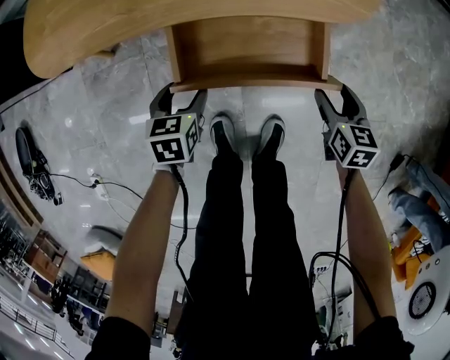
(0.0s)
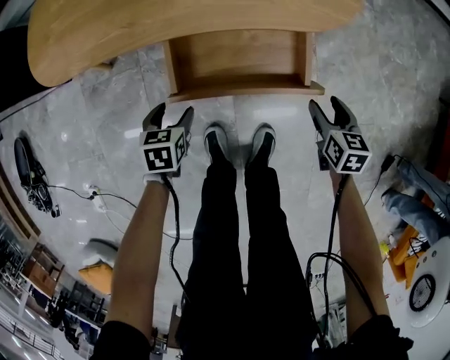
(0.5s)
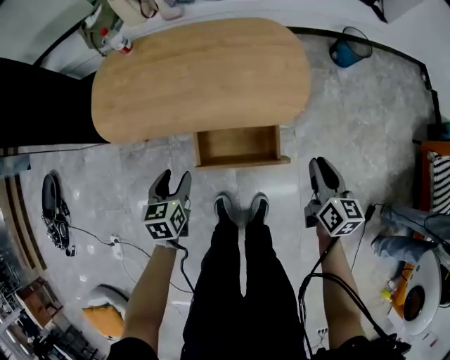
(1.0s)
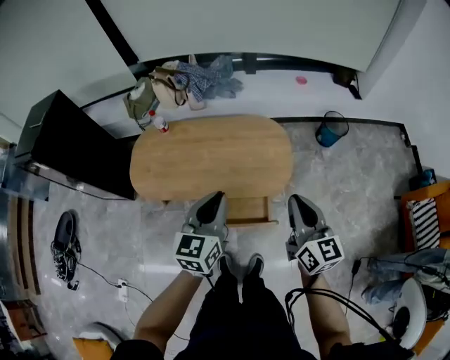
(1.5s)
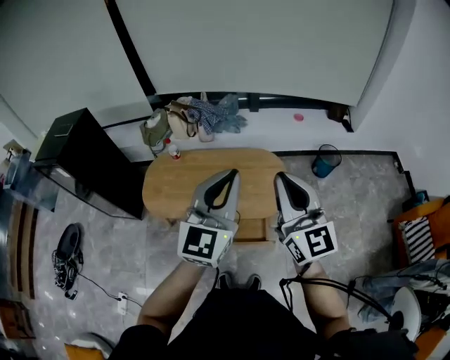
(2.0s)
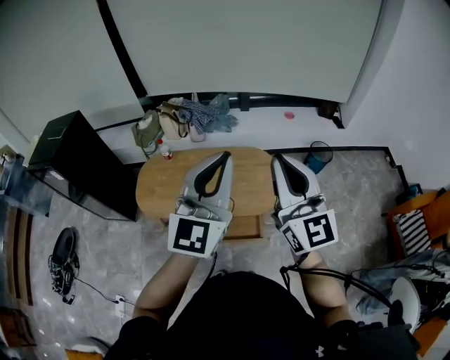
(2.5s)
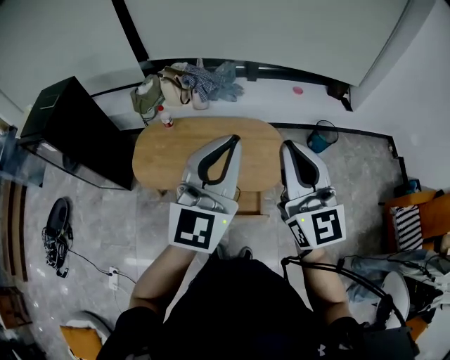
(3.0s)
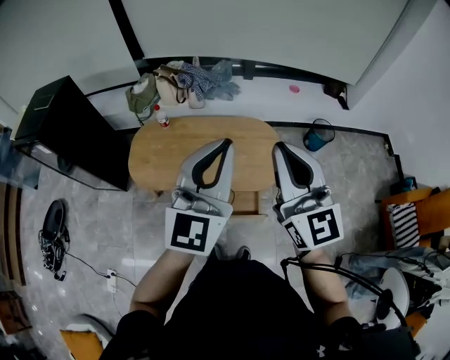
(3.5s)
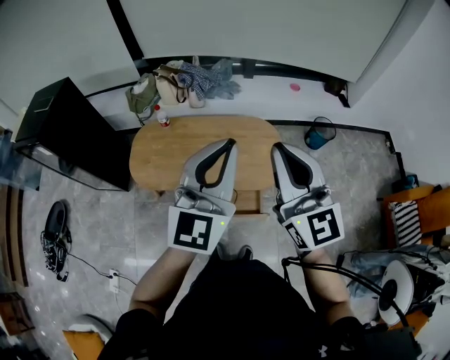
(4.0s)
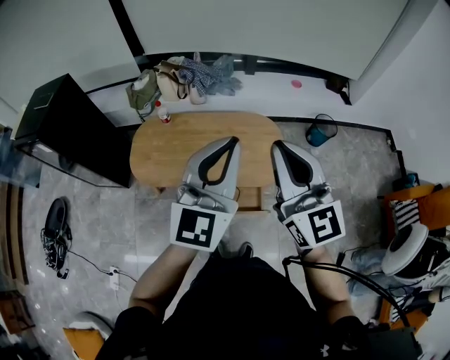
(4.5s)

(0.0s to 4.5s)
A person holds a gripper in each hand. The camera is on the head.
0.0s - 2.0s: The two grippers go some 90 cm upward. The left gripper angles its fingers upward, by approximately 60 degrees, and closes. The right gripper points its fingers about 60 degrees further upward, and closes.
2.0s - 4.5s: The right gripper travels to the left by about 5 cm.

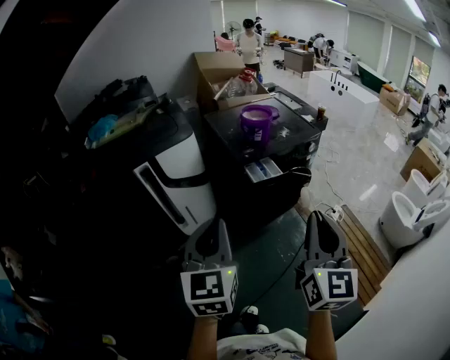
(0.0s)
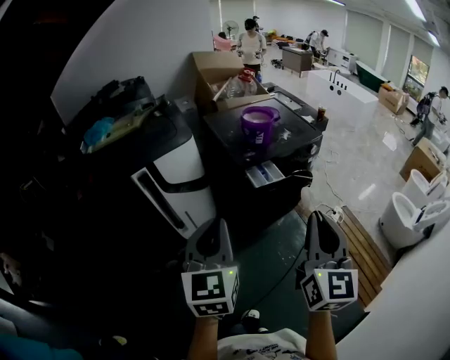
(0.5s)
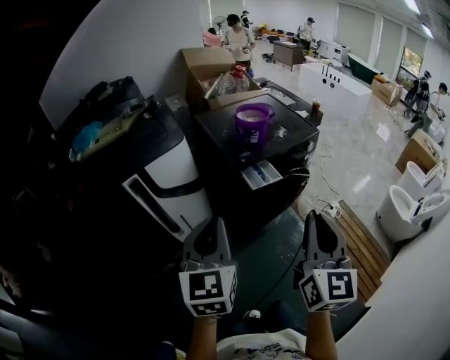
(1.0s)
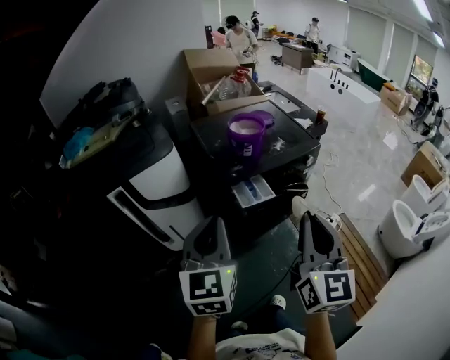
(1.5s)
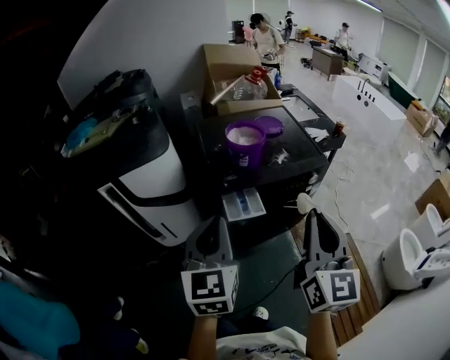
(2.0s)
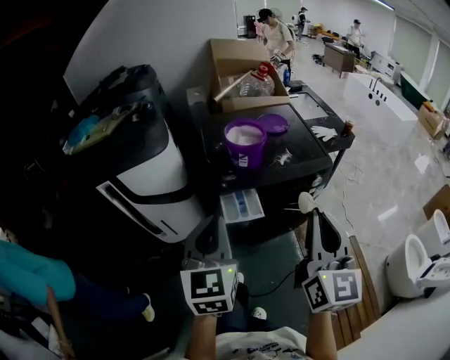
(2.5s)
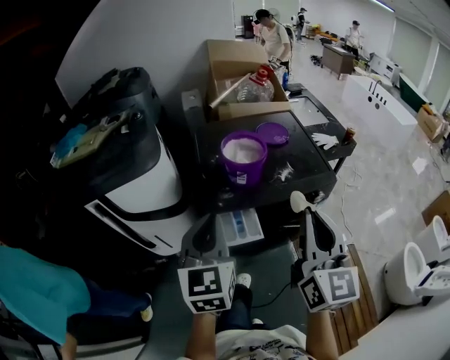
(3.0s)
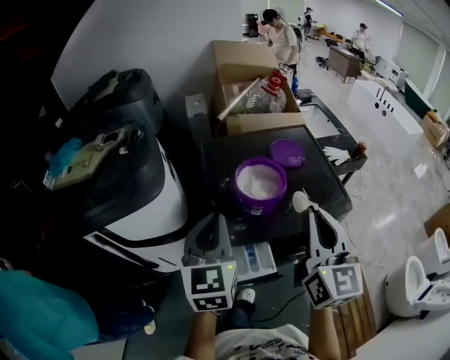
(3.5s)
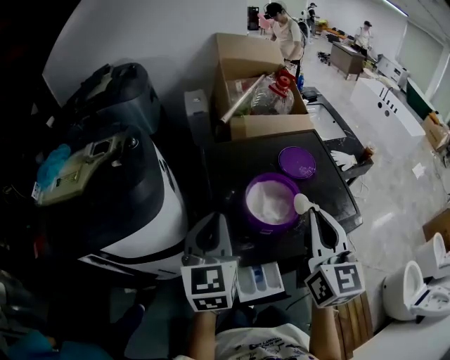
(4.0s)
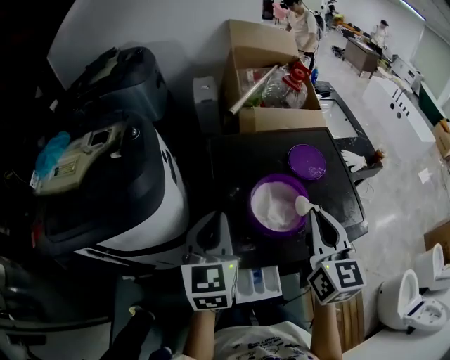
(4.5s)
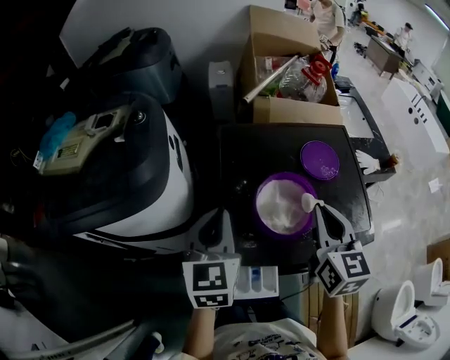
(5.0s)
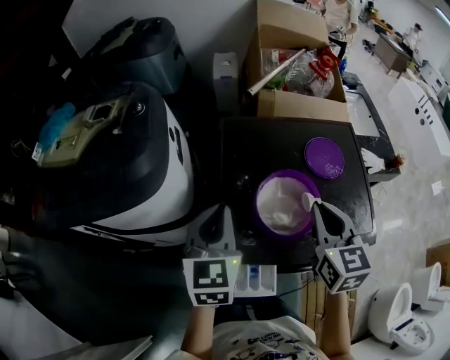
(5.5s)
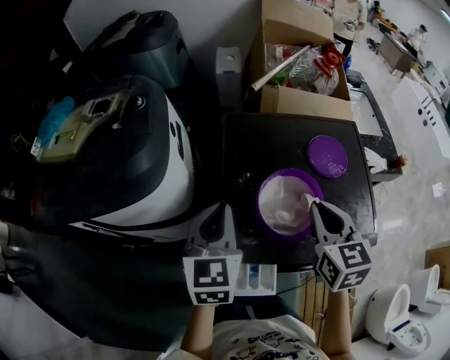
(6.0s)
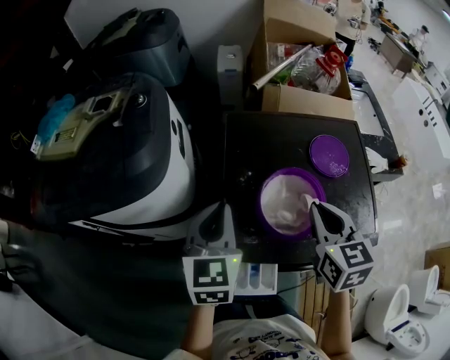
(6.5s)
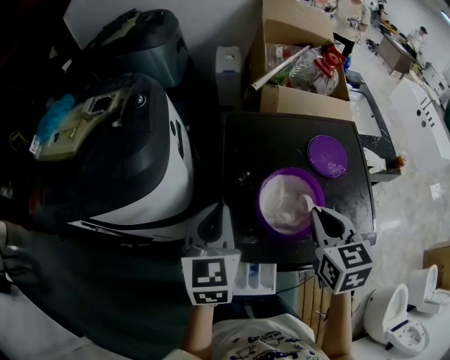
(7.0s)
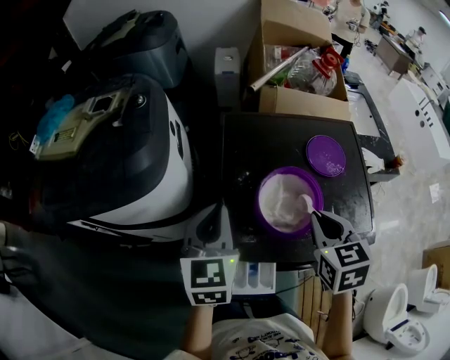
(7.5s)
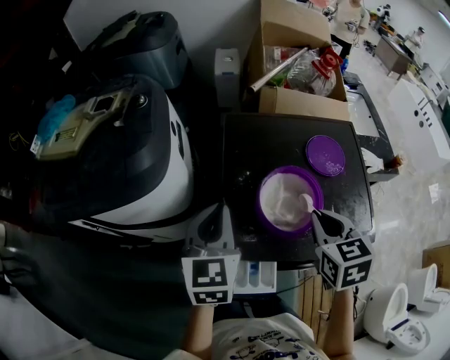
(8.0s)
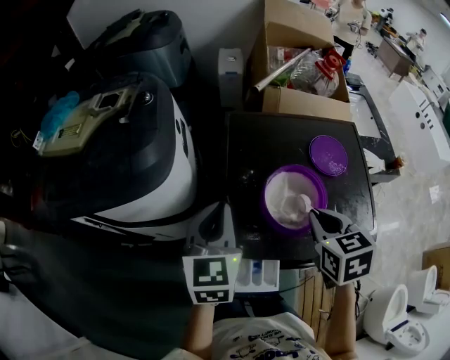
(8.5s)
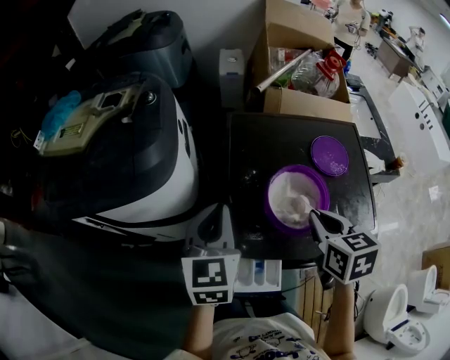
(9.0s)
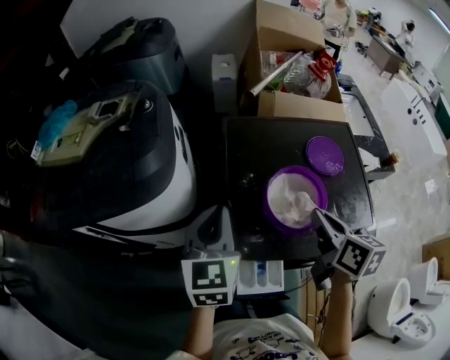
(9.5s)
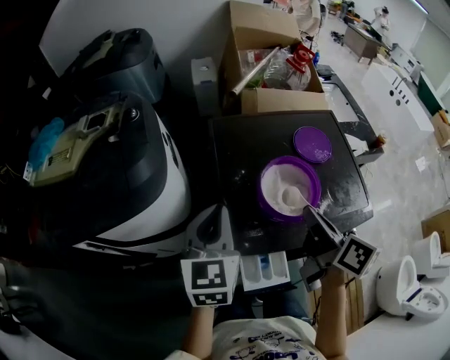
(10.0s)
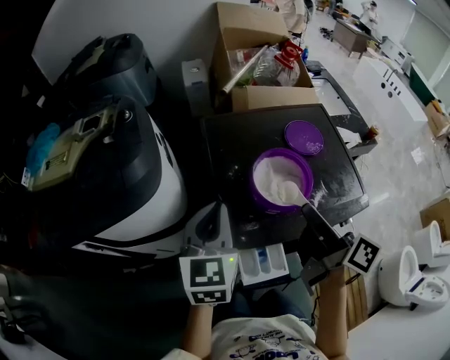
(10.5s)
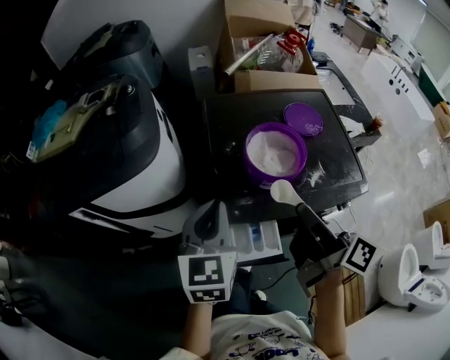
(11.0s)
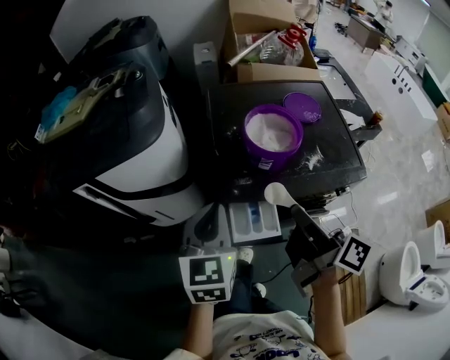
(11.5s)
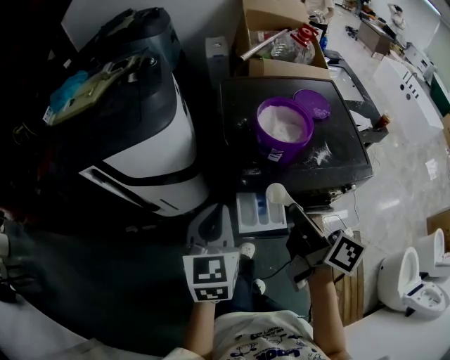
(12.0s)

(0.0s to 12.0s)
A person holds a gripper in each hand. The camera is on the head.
0.0s - 2.0s: Both grippers move forward and to the right, about 25 cm.
2.0s - 4.0s: Both grippers move forward, about 35 cm.
4.0s - 6.0s: The right gripper moves downward and forward, roughly 15 cm, and turns by about 30 degrees, while the left gripper shifts some 5 cm downward.
6.0s - 8.0s: The grippers make only small movements.
8.0s - 10.0s: The right gripper moves roughly 5 cm, and twists roughly 50 degrees clockwise, seen from behind.
10.0s - 12.0s: The two grippers go approximately 15 cm backward.

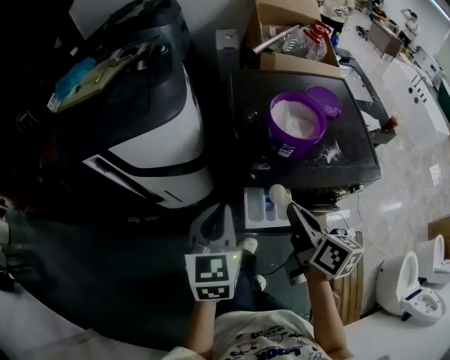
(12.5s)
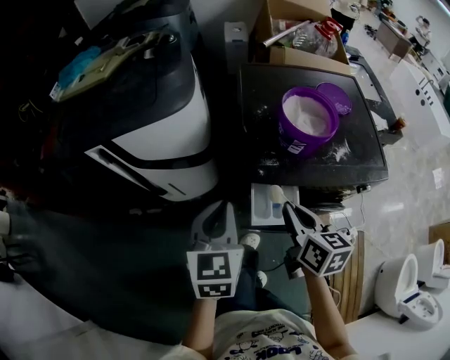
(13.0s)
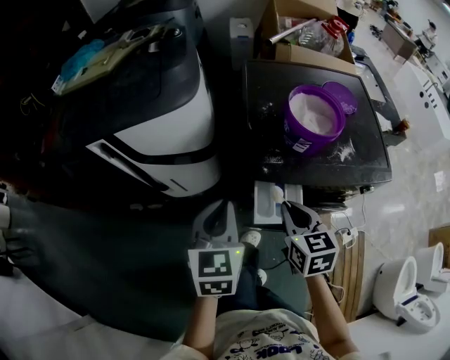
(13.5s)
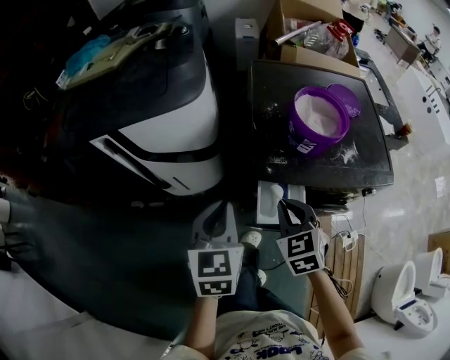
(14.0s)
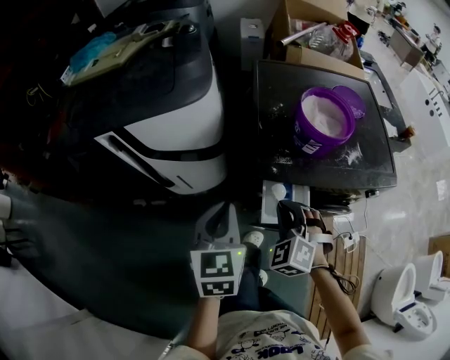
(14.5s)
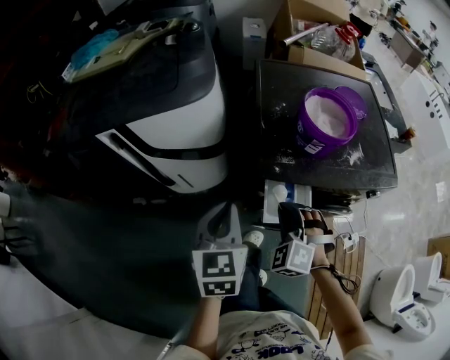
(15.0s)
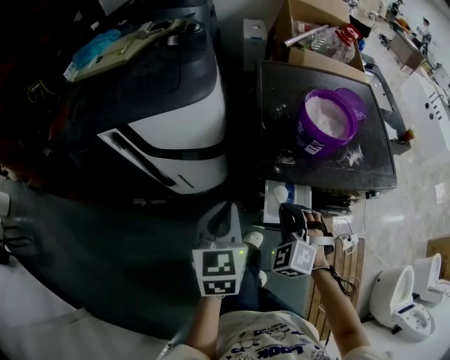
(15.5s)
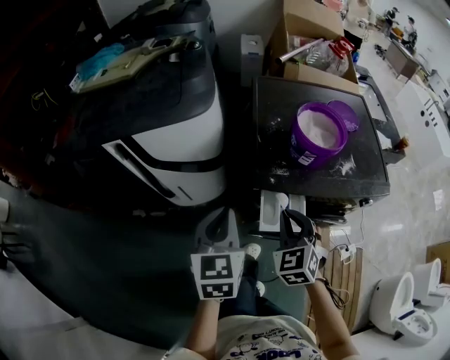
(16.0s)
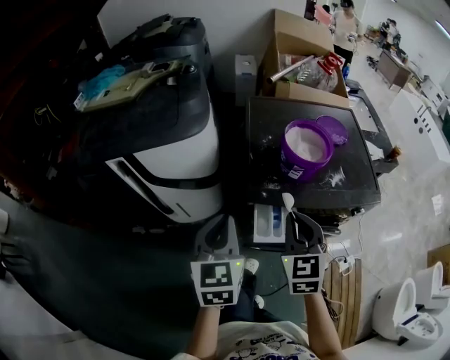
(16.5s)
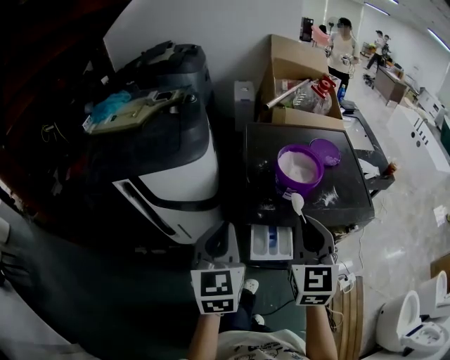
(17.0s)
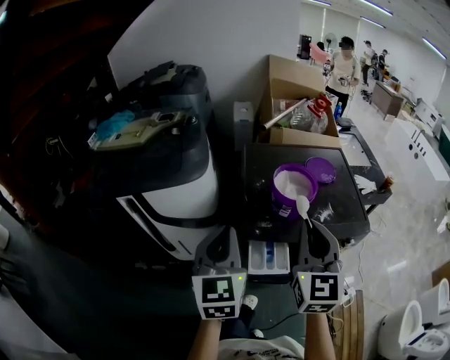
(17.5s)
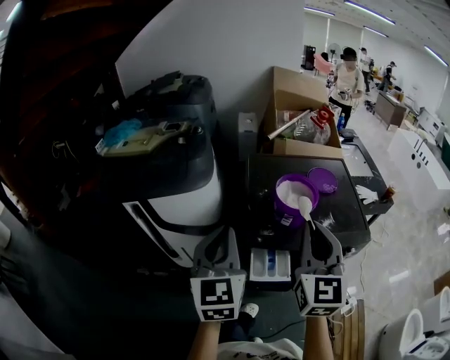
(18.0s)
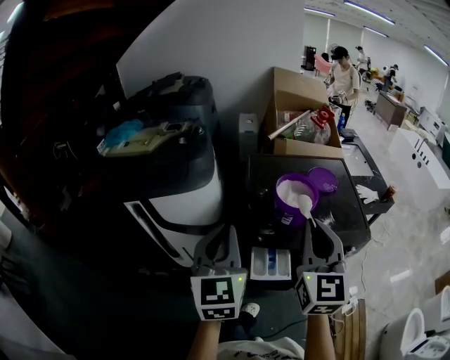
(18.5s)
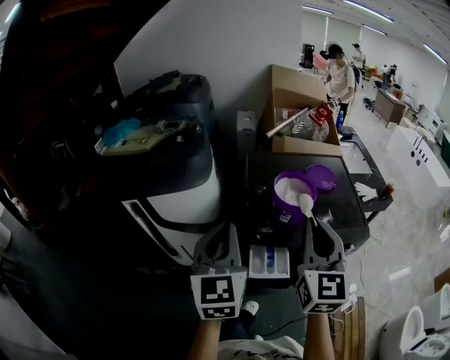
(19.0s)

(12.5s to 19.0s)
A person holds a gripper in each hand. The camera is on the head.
12.5s - 14.5s: The left gripper moves approximately 5 cm; the right gripper is displaced downward and to the left by some 10 cm, and rotates around the line of its fingers by roughly 90 degrees, counterclockwise from behind.
14.5s - 17.0s: The right gripper shifts approximately 20 cm upward, and rotates around the line of its fingers by approximately 40 degrees, clockwise from behind. The left gripper moves upward, approximately 10 cm.
17.0s - 19.0s: The two grippers go approximately 10 cm upward.

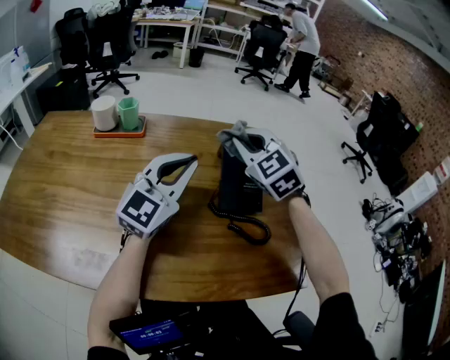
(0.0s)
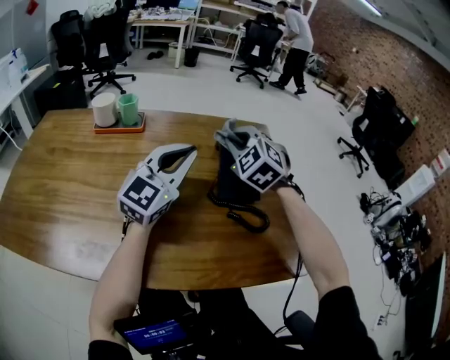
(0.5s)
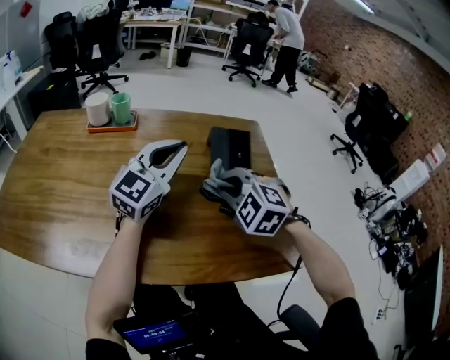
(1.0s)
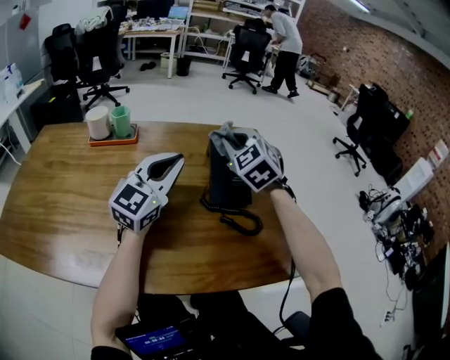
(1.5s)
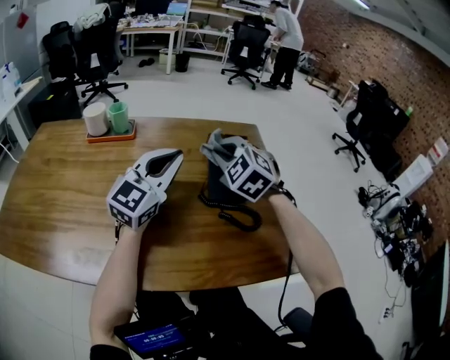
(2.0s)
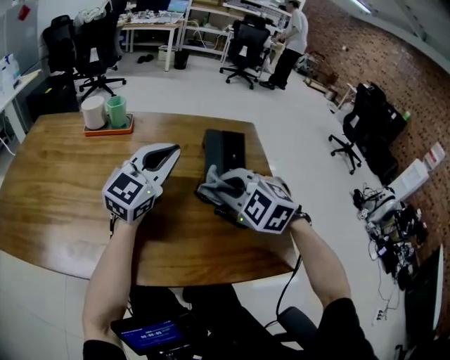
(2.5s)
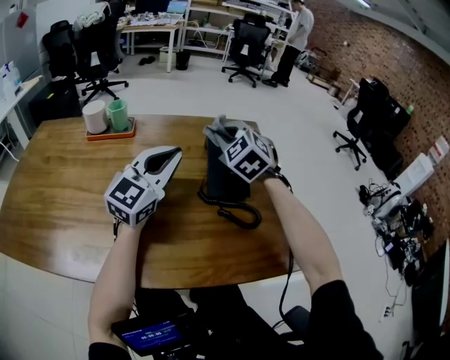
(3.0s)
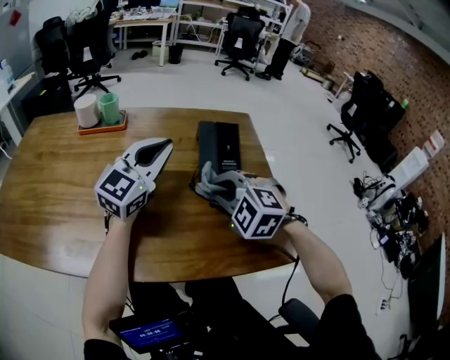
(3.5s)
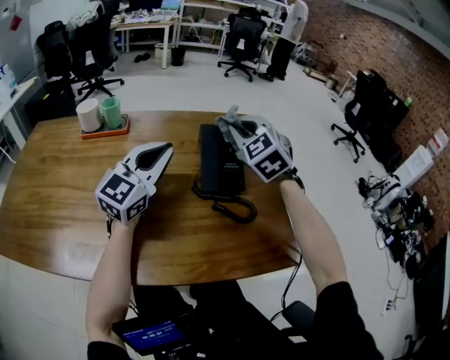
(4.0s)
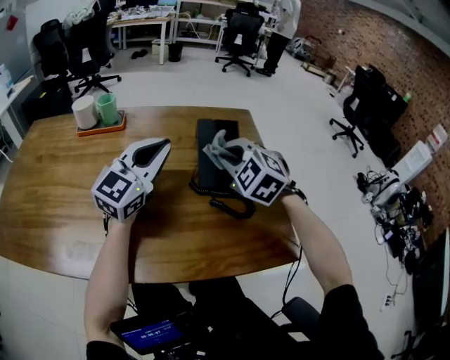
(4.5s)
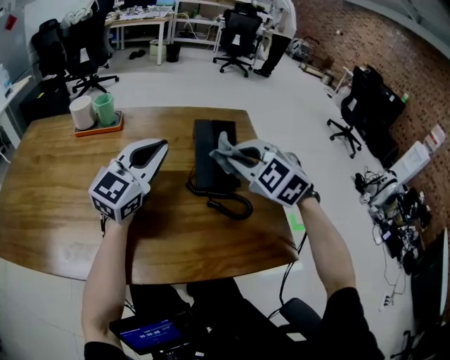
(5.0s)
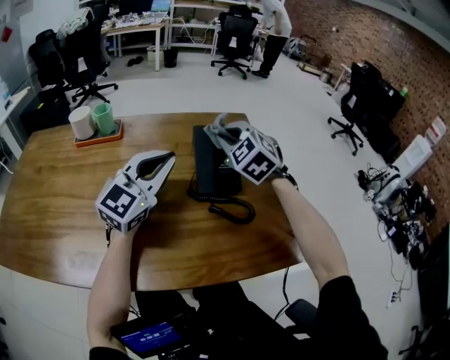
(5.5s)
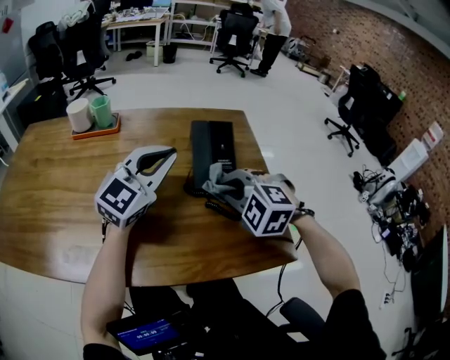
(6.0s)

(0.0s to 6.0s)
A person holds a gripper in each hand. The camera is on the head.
0.0s - 2.0s: The right gripper goes forward and backward, approximately 15 cm each way, reversing 2 times.
2.0s - 4.0s: The right gripper swings forward and backward, roughly 15 cm each way, with 3 reversals.
4.0s - 6.0s: The right gripper swings forward and backward, some 15 cm each way, with 2 reversals, and changes its angle by some 30 degrees.
